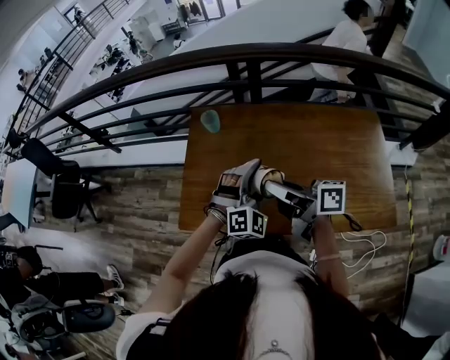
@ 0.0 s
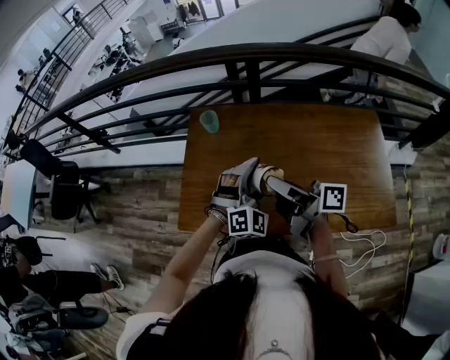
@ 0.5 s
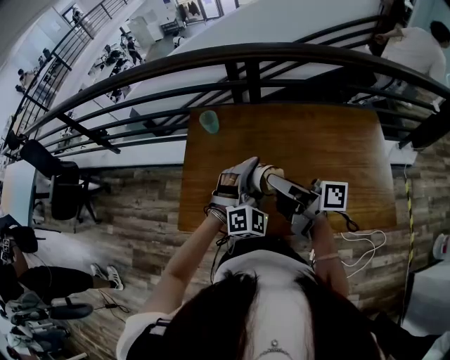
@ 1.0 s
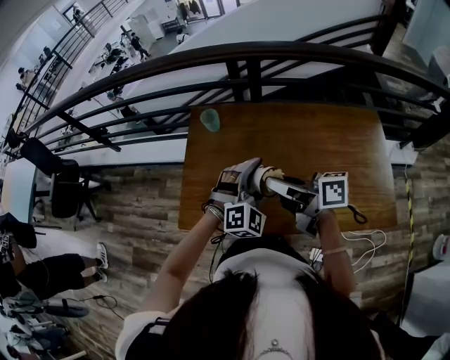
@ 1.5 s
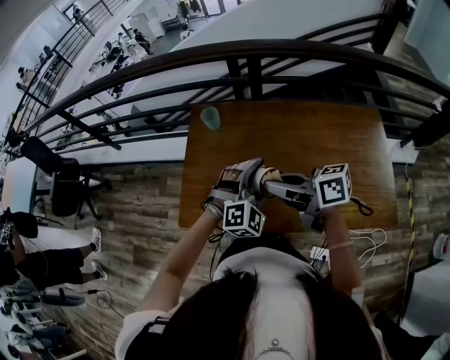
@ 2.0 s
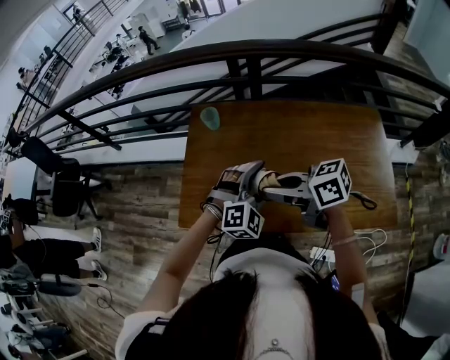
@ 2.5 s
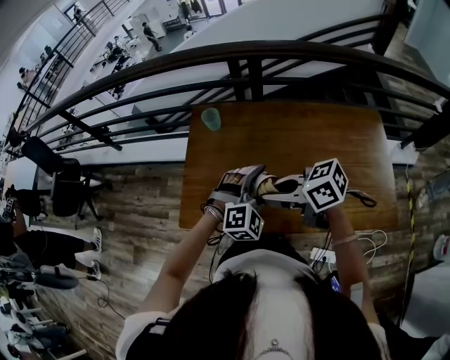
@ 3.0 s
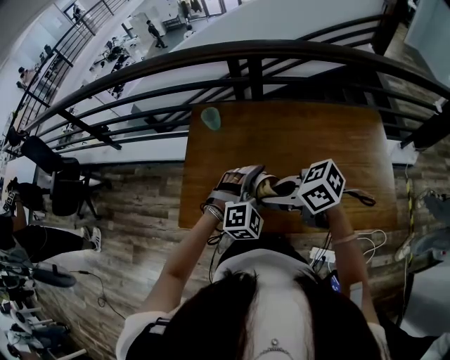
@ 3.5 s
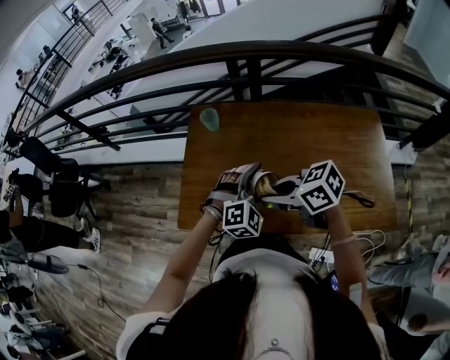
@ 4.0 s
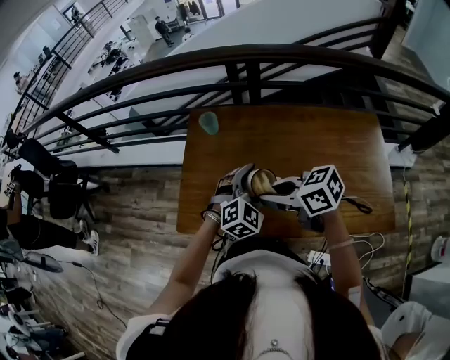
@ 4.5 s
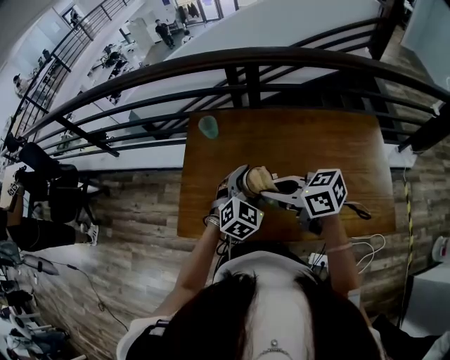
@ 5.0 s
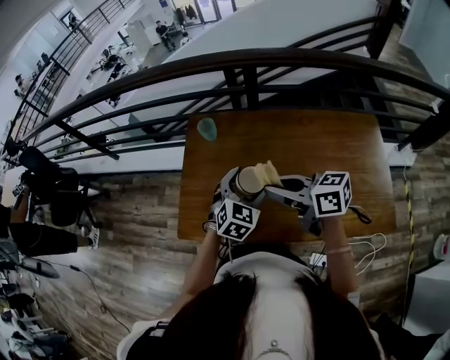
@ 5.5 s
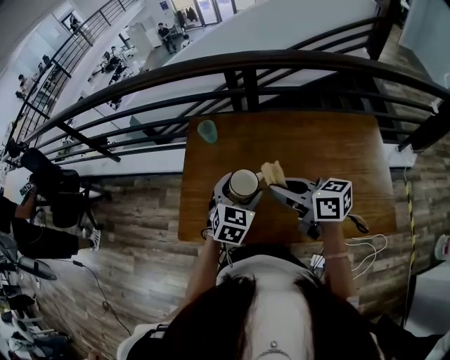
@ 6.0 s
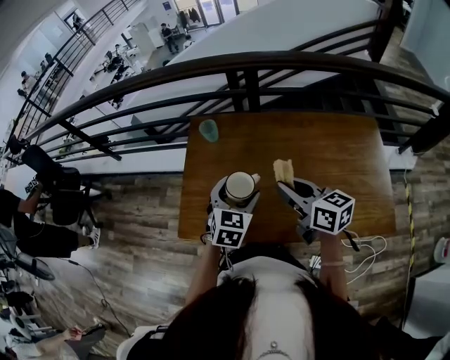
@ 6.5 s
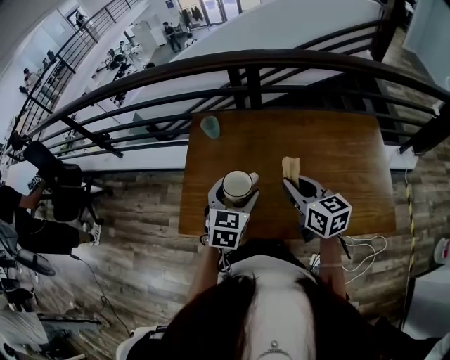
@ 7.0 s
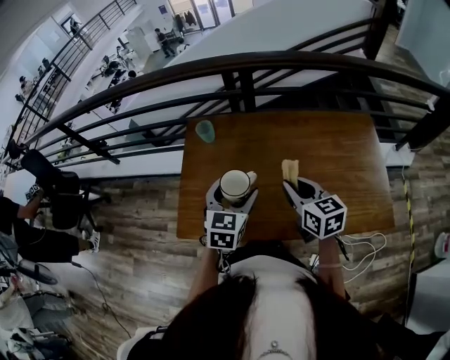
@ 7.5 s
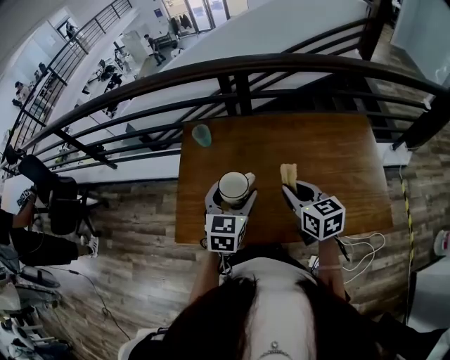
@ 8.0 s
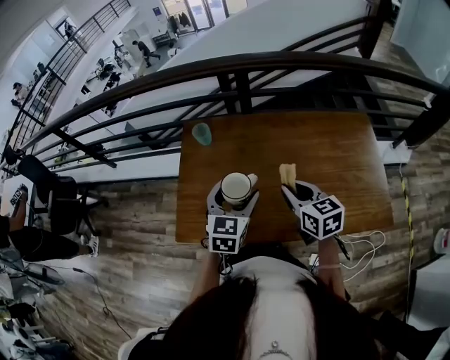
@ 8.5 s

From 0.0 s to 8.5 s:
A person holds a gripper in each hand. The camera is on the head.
From 0.0 s to 2.0 s: The grippers stay close to where they were, moving slightly.
From 2.0 s to 4.0 s: The right gripper turns by some 30 degrees.
From 4.0 s to 6.5 s: The right gripper shifts approximately 10 cm to the right, and swivels approximately 40 degrees, while the left gripper goes some 5 cm to the left, and rotates around the line of its fingers by about 50 degrees, counterclockwise from behind.
From 6.5 s to 8.5 s: The right gripper ends up about 5 cm from where it was, and changes its angle by roughly 20 degrees.

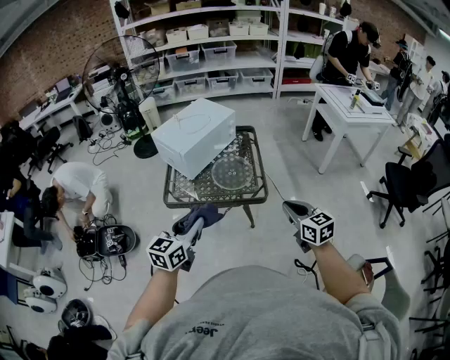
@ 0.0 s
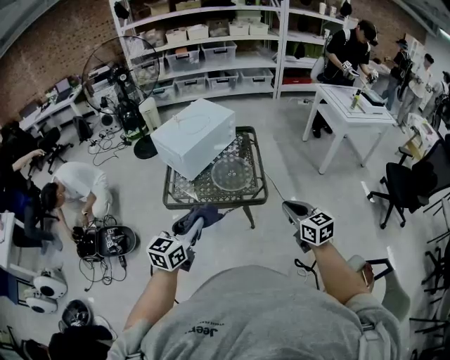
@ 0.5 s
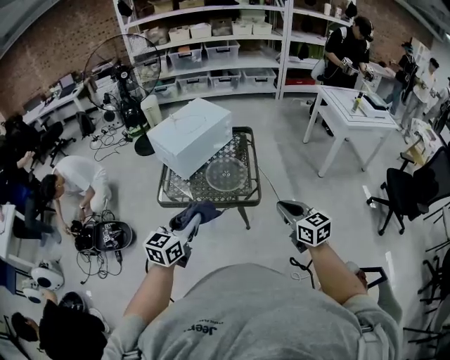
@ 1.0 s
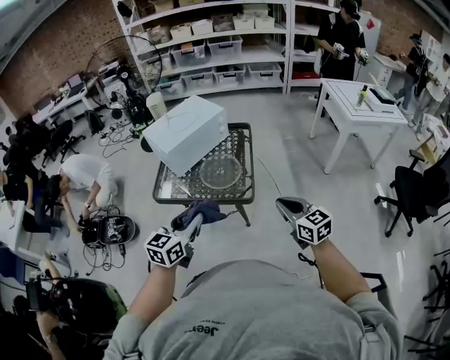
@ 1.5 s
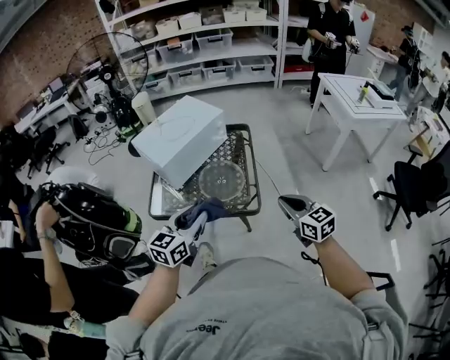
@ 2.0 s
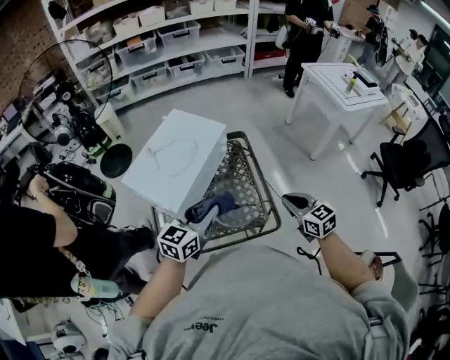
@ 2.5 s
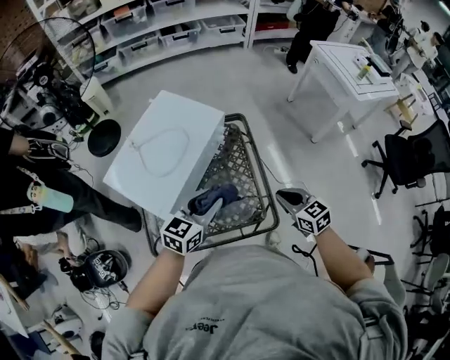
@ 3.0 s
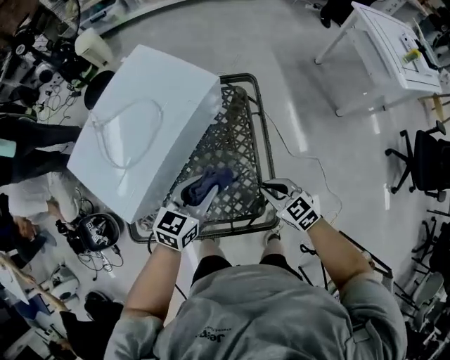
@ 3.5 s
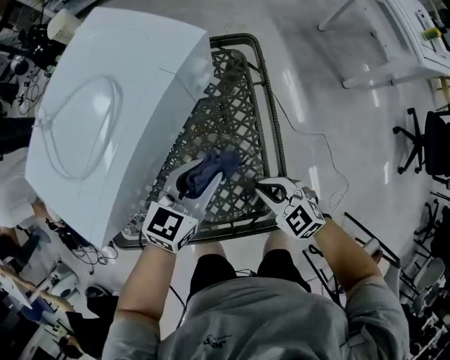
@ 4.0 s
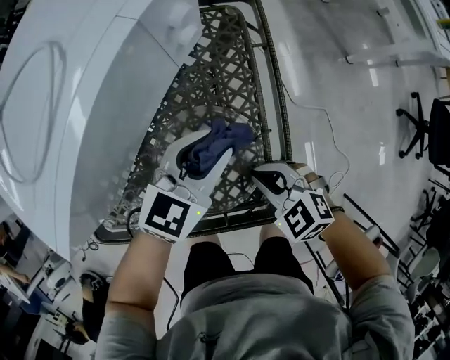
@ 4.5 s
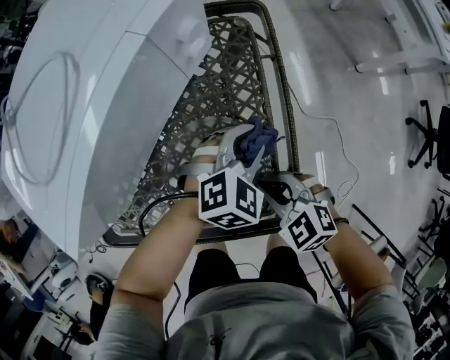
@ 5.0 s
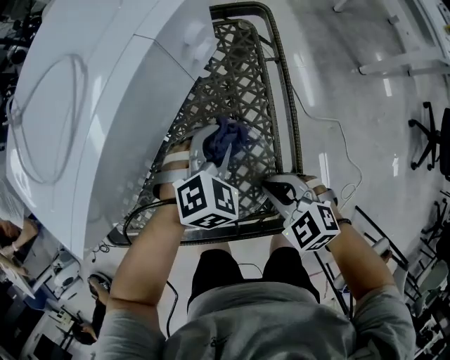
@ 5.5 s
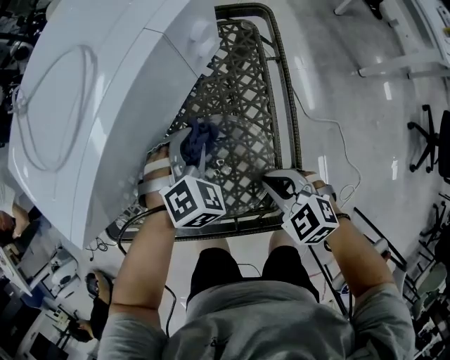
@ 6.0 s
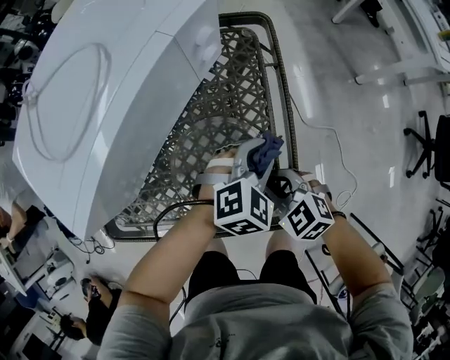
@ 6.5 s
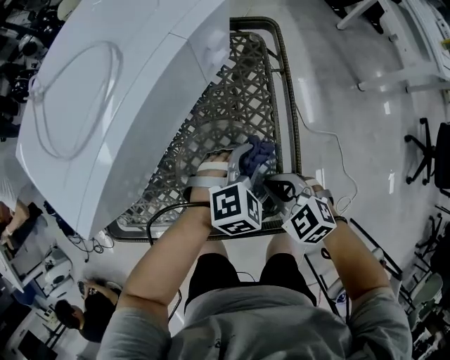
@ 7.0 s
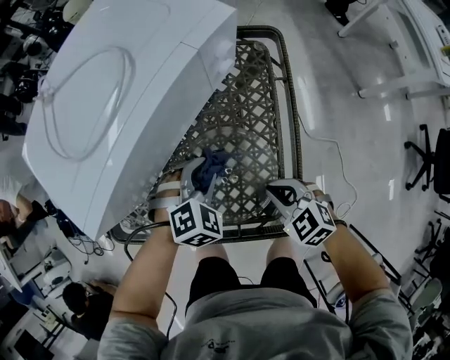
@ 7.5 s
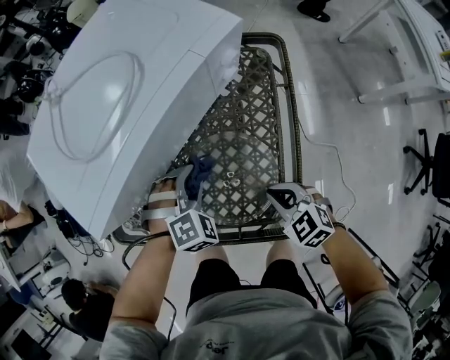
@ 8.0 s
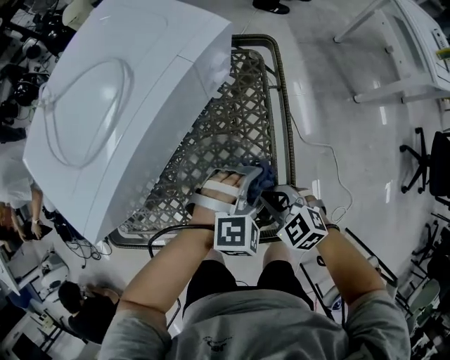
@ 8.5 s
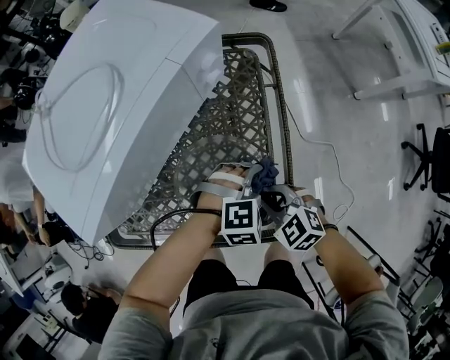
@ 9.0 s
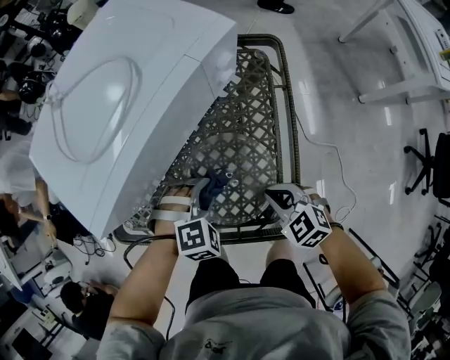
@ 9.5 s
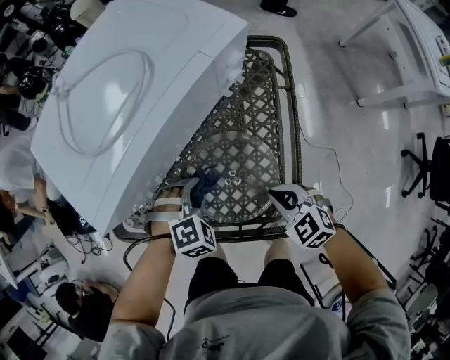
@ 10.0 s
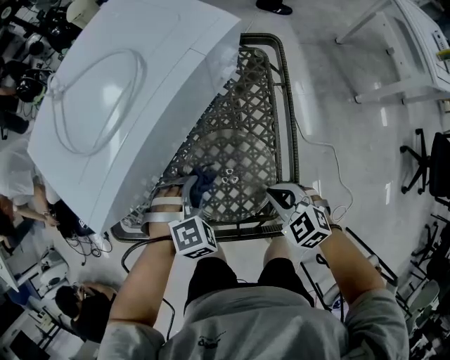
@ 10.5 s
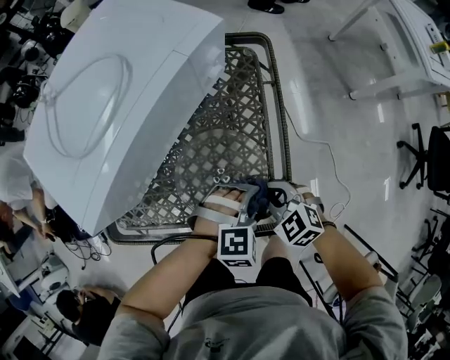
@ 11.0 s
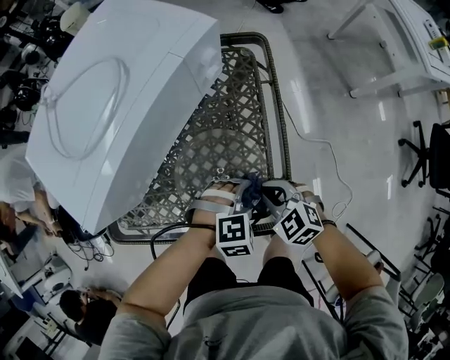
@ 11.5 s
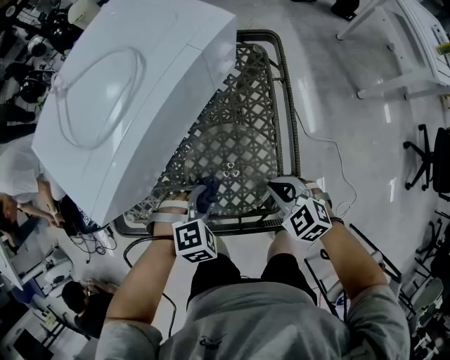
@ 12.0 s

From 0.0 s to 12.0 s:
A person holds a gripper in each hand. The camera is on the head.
From 0.0 s to 2.0 s: Both grippers travel together forward and to the right, some 15 cm.
From 2.0 s to 4.0 s: The left gripper shifts some 40 cm forward and downward, and rotates some 20 degrees; the right gripper goes about 40 cm downward and forward, and turns by approximately 30 degrees.
From 4.0 s to 6.0 s: The left gripper goes approximately 10 cm downward, reaches some 10 cm to the right, then returns, and tilts its fingers approximately 30 degrees downward.
From 6.0 s to 8.0 s: The left gripper moves some 15 cm to the right and comes back.
From 10.0 s to 12.0 s: The left gripper goes to the right and returns, about 15 cm each way.

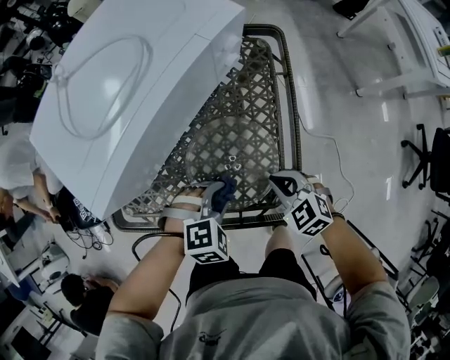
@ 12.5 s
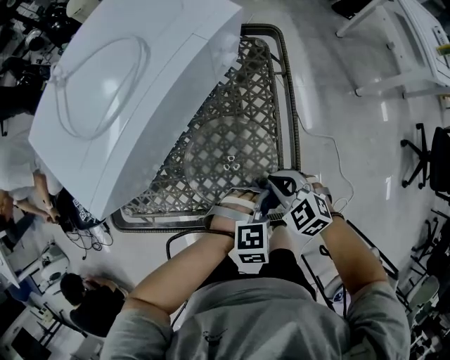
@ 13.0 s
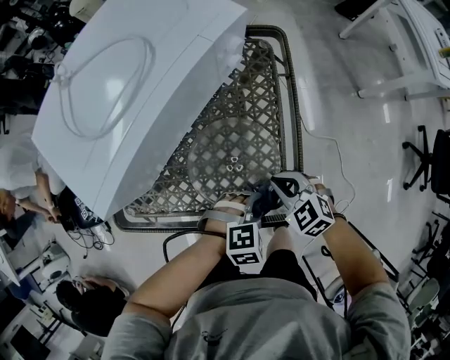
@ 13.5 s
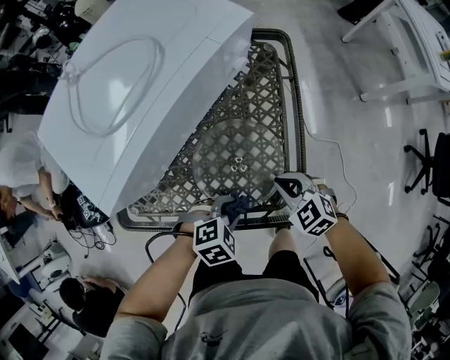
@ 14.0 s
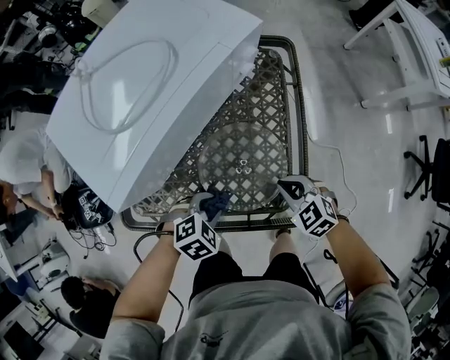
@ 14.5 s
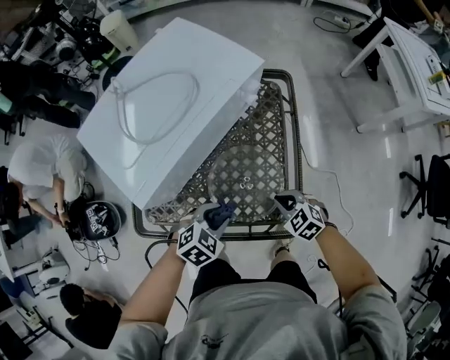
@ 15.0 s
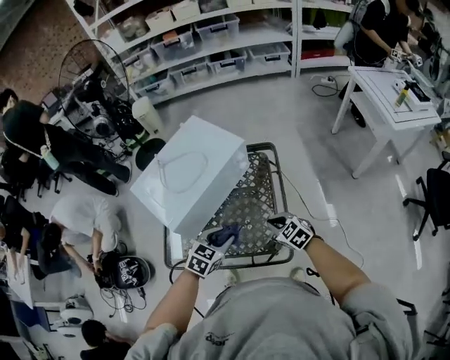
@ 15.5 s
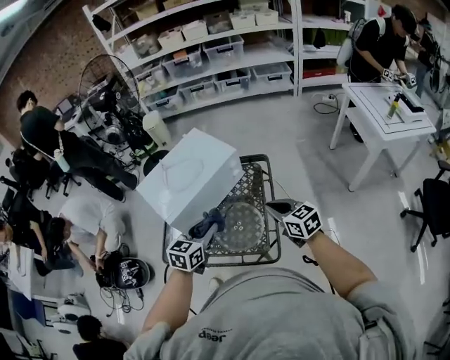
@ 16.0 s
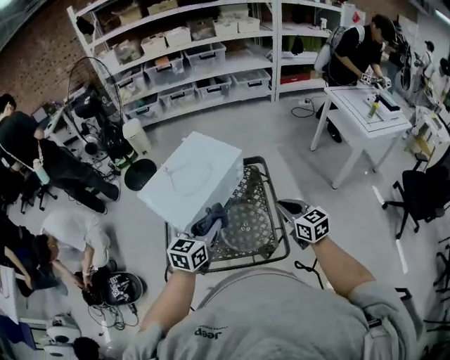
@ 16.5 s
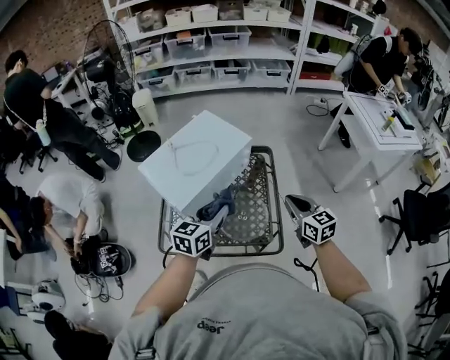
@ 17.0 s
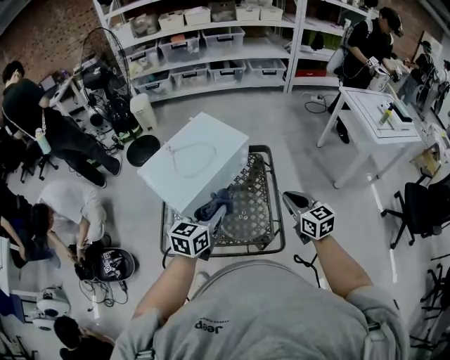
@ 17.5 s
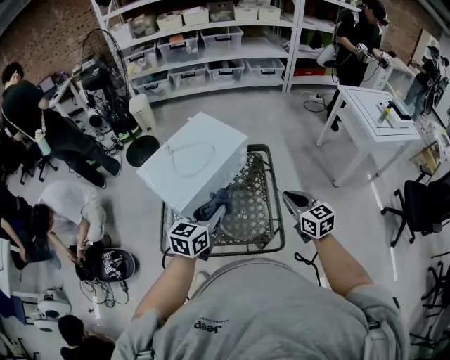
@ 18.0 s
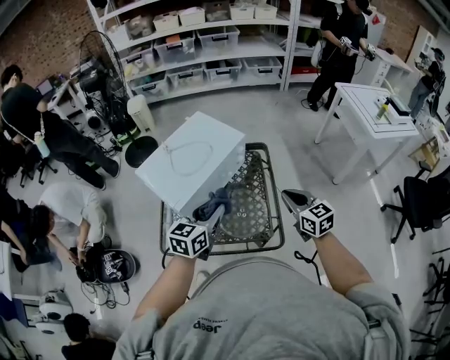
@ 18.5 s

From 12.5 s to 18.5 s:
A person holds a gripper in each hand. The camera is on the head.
From 12.5 s to 14.5 s: The left gripper changes its angle by approximately 20 degrees.
From 14.5 s to 16.5 s: The two grippers go approximately 35 cm upward. The right gripper tilts its fingers roughly 30 degrees upward, while the left gripper tips its fingers upward by roughly 50 degrees.
From 16.5 s to 18.5 s: The grippers move only a little.
